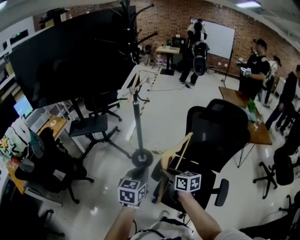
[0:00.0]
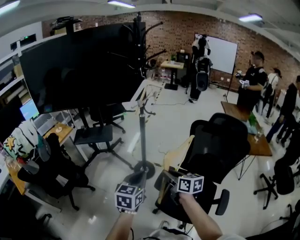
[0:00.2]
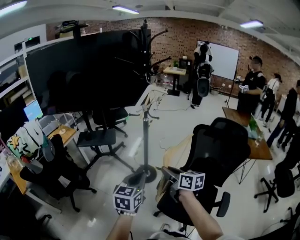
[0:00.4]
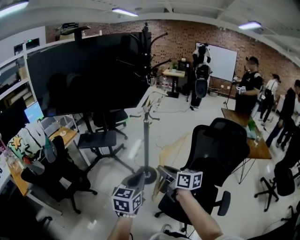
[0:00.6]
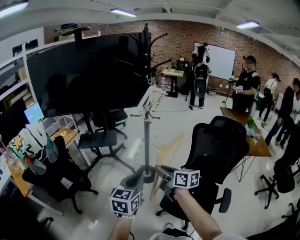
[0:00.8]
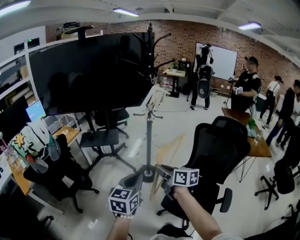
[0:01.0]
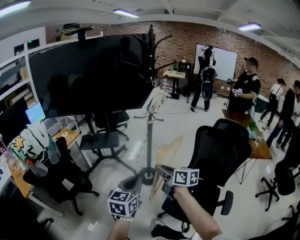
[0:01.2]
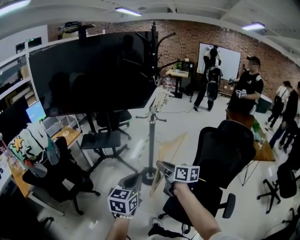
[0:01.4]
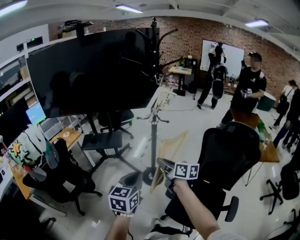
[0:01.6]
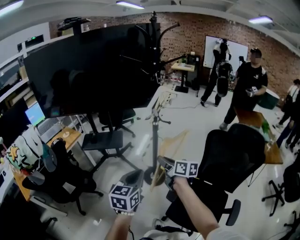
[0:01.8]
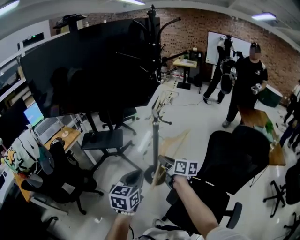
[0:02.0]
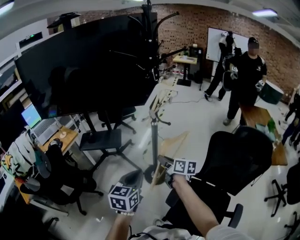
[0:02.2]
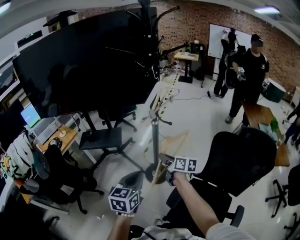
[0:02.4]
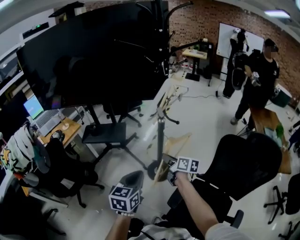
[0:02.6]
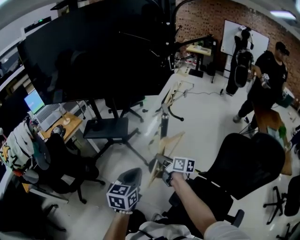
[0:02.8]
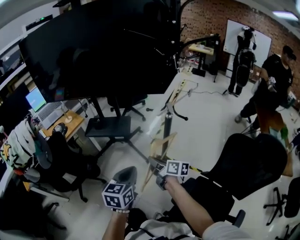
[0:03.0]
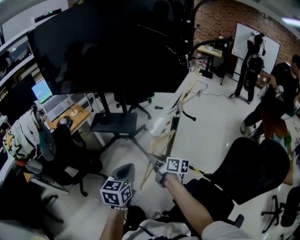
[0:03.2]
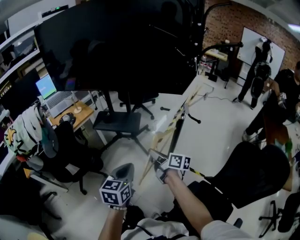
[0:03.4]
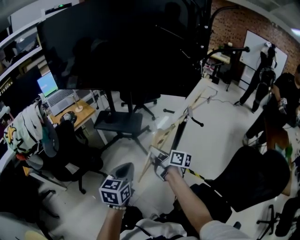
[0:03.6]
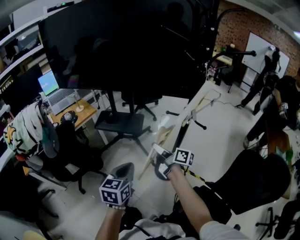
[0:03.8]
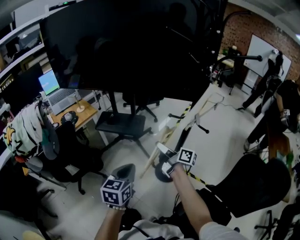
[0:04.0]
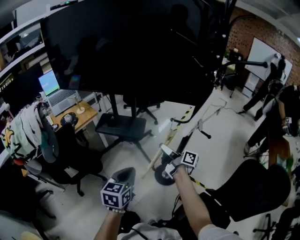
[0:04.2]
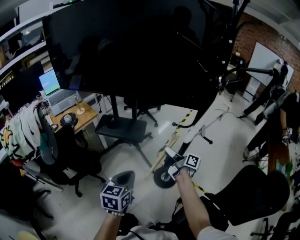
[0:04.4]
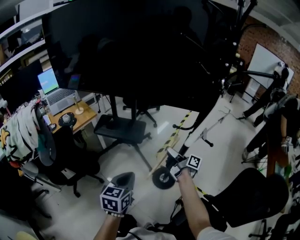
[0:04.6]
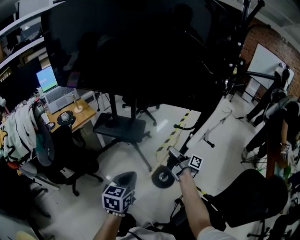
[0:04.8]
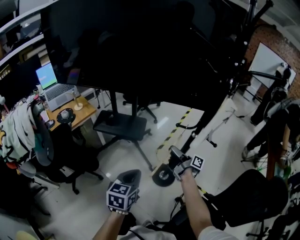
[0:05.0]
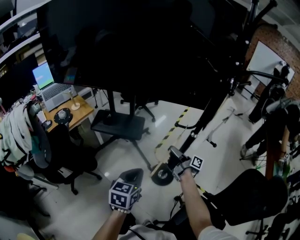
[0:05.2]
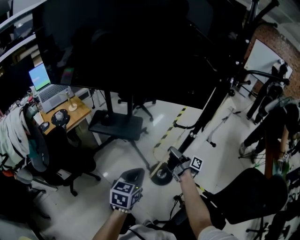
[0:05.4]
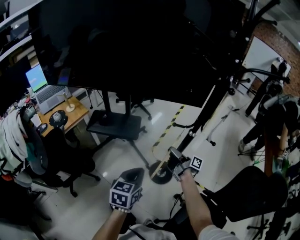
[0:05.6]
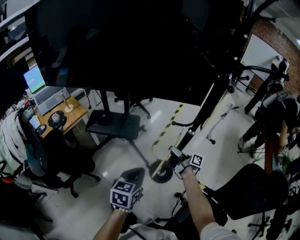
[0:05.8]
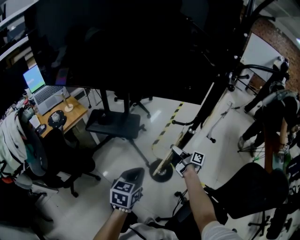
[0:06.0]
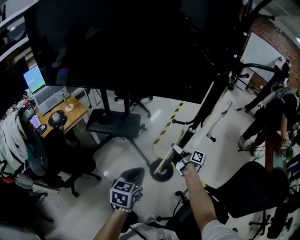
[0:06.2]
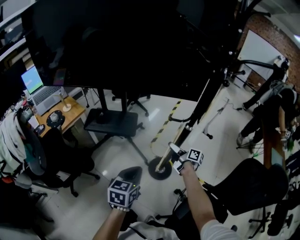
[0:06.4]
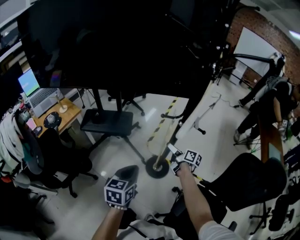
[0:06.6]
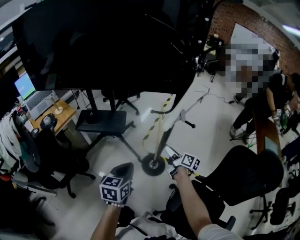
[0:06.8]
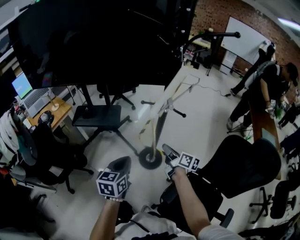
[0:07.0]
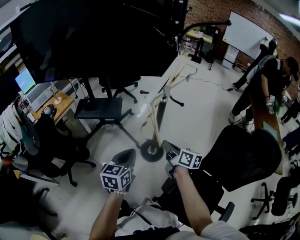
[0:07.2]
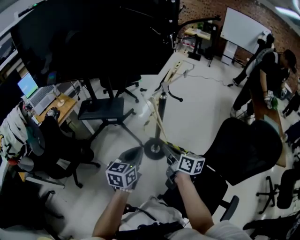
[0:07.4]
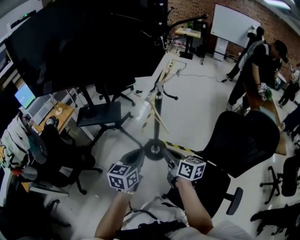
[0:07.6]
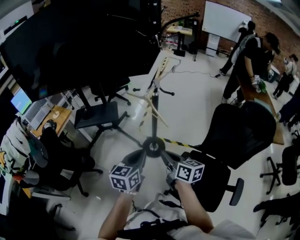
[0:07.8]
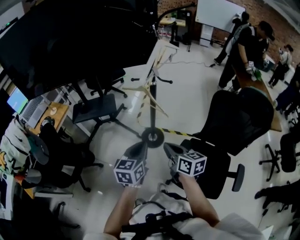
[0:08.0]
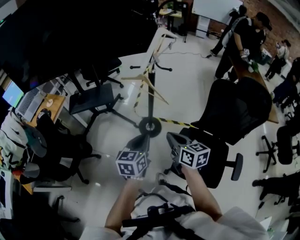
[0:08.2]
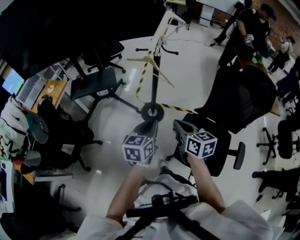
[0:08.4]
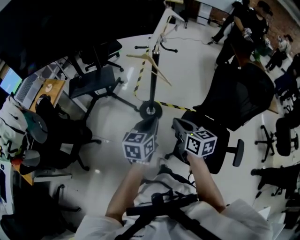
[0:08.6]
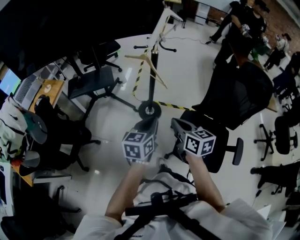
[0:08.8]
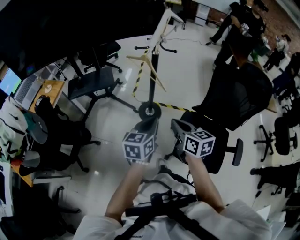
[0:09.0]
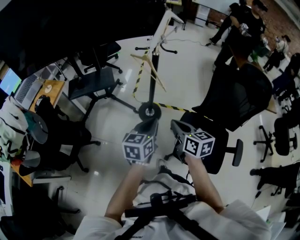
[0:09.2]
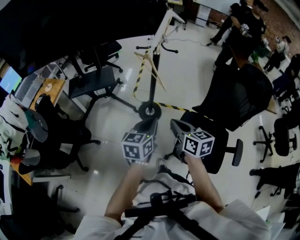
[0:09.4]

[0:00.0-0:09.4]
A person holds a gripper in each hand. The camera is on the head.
0:00.0 to 0:01.6: The right gripper is displaced forward, upward and to the left by about 20 cm; the left gripper moves to the left and upward, about 15 cm.
0:01.6 to 0:03.2: The left gripper goes roughly 20 cm forward and downward, while the right gripper goes about 25 cm forward, downward and to the left, and changes its angle by about 20 degrees.
0:03.2 to 0:04.8: The right gripper moves forward and to the right, approximately 20 cm, and changes its angle by roughly 30 degrees, while the left gripper travels forward by some 10 cm.
0:04.8 to 0:06.2: The right gripper heads downward, covering some 5 cm. The left gripper ends up some 5 cm from where it was.
0:06.2 to 0:07.8: The left gripper goes about 20 cm backward and to the right, while the right gripper travels backward by approximately 35 cm, turns by about 30 degrees, and closes its fingers.
0:07.8 to 0:09.4: Both grippers travel together backward, roughly 5 cm.

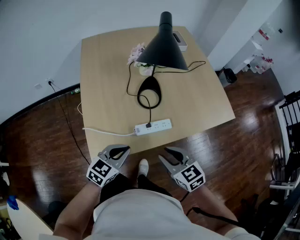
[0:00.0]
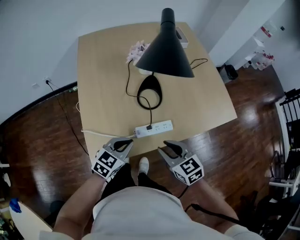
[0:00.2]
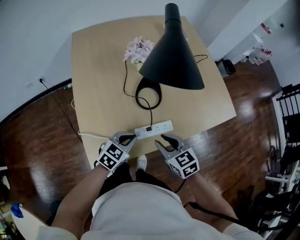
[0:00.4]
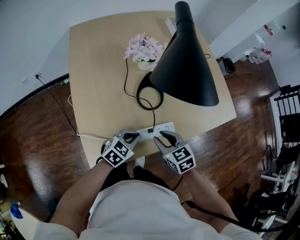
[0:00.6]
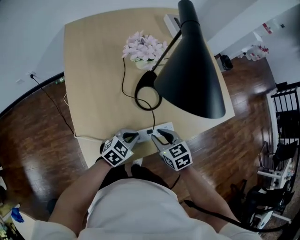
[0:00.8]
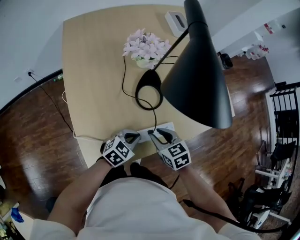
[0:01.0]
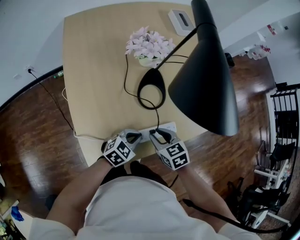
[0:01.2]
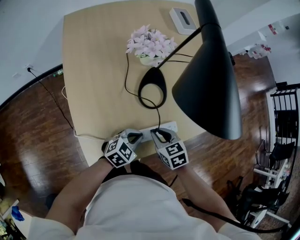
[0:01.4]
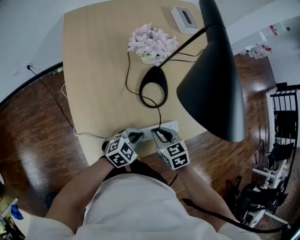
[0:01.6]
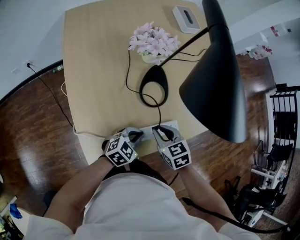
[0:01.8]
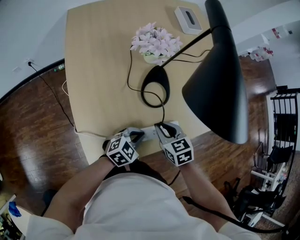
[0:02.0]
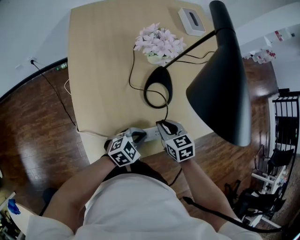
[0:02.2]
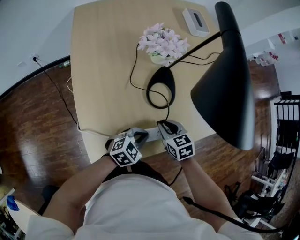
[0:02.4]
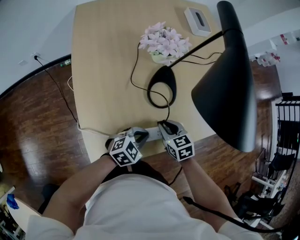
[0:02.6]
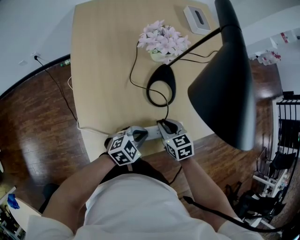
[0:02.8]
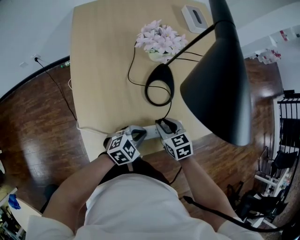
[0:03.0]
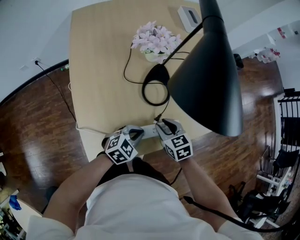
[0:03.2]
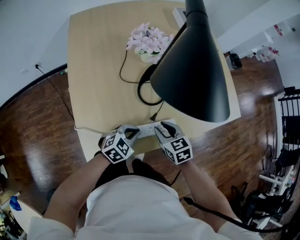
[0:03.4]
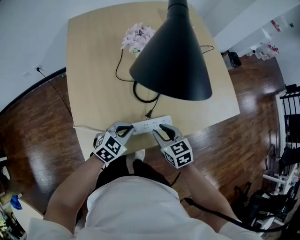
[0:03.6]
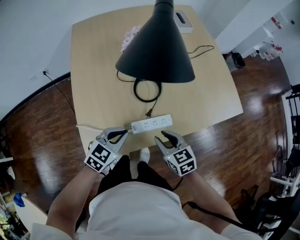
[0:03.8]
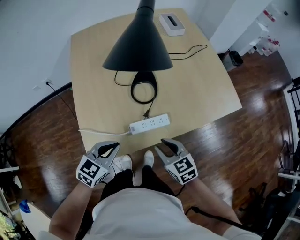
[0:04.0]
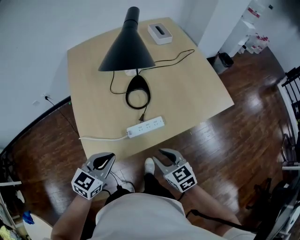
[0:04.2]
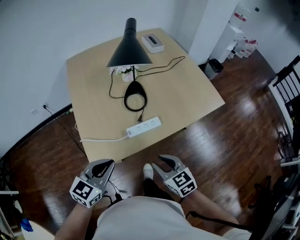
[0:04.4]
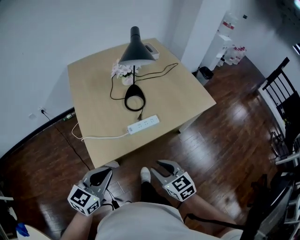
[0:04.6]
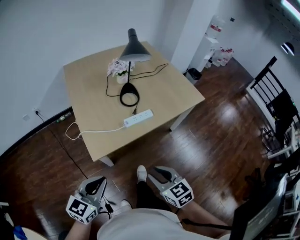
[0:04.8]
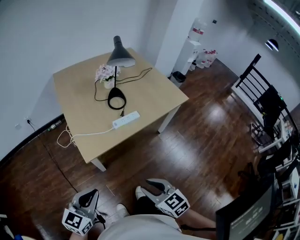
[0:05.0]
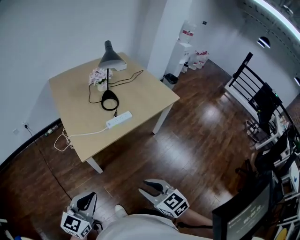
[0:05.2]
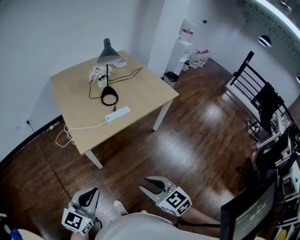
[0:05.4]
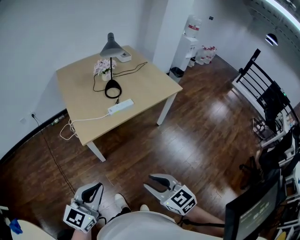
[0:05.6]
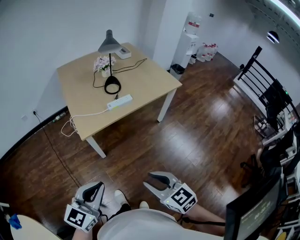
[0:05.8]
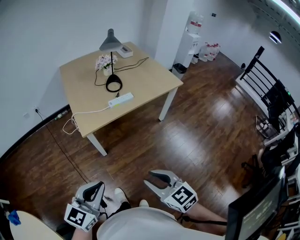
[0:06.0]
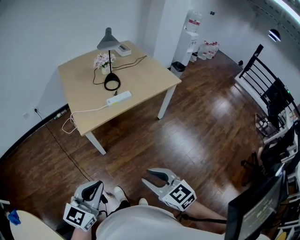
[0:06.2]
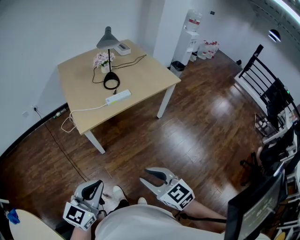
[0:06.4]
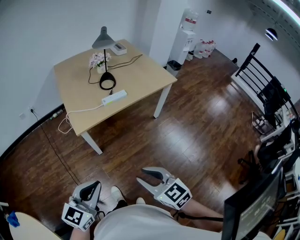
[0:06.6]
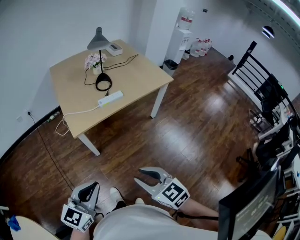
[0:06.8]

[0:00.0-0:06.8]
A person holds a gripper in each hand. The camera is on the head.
0:00.0 to 0:01.4: The left gripper heads downward and forward, covering roughly 15 cm, and rotates some 20 degrees, while the right gripper heads forward, downward and to the left, covering roughly 20 cm, and changes its angle by approximately 20 degrees.
0:01.4 to 0:02.8: The grippers move only a little.
0:02.8 to 0:04.0: The right gripper heads backward, upward and to the right, covering roughly 15 cm. Meanwhile the left gripper is displaced upward, backward and to the left by about 15 cm.
0:04.0 to 0:05.4: The grippers both shift backward by approximately 40 cm. The left gripper turns by about 20 degrees.
0:05.4 to 0:06.8: The left gripper is displaced backward and to the right by approximately 10 cm; the right gripper moves backward, approximately 5 cm.

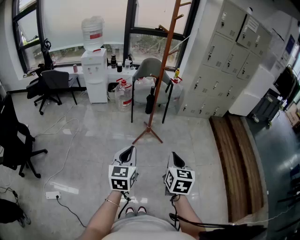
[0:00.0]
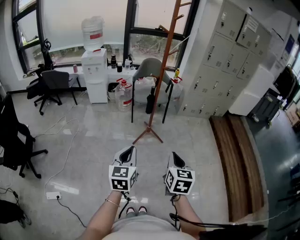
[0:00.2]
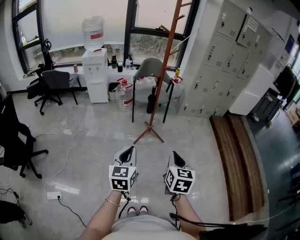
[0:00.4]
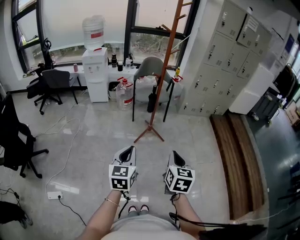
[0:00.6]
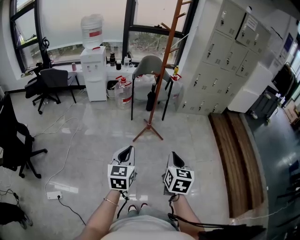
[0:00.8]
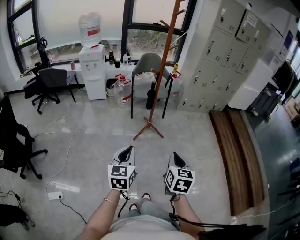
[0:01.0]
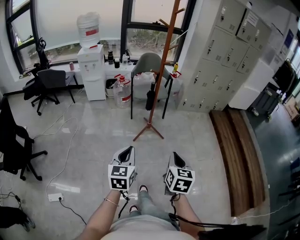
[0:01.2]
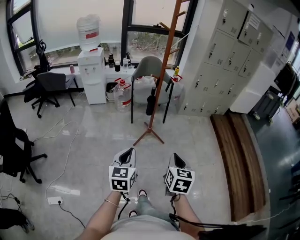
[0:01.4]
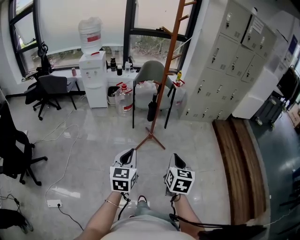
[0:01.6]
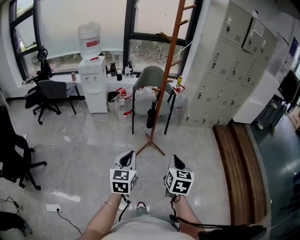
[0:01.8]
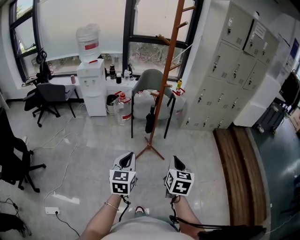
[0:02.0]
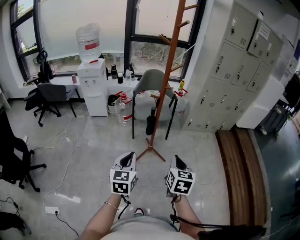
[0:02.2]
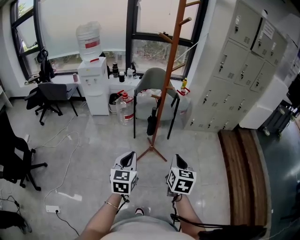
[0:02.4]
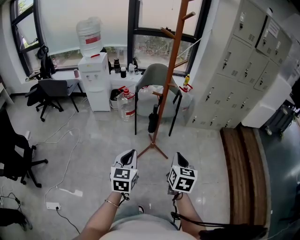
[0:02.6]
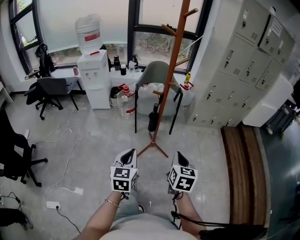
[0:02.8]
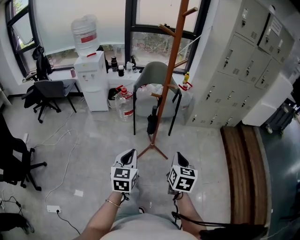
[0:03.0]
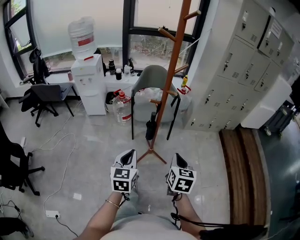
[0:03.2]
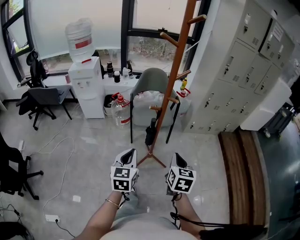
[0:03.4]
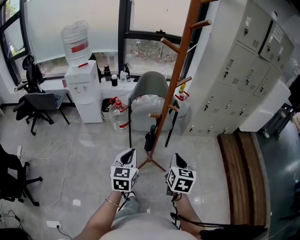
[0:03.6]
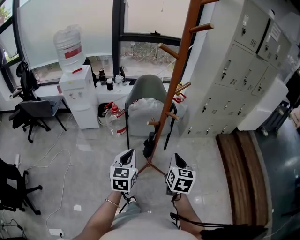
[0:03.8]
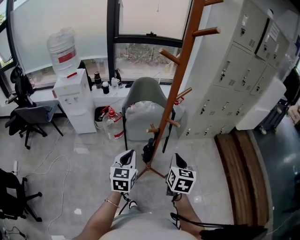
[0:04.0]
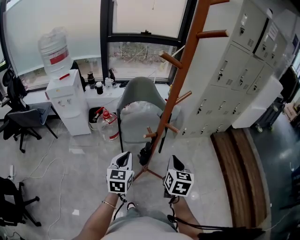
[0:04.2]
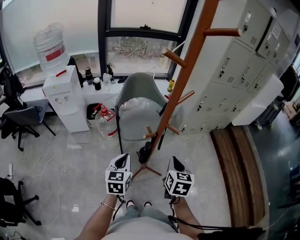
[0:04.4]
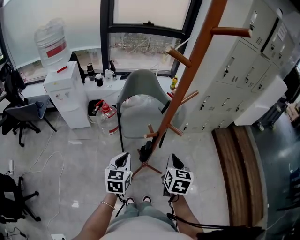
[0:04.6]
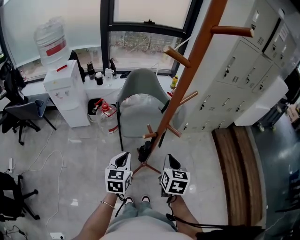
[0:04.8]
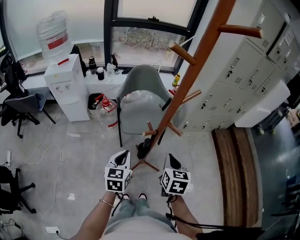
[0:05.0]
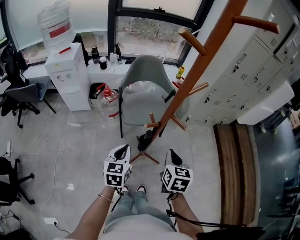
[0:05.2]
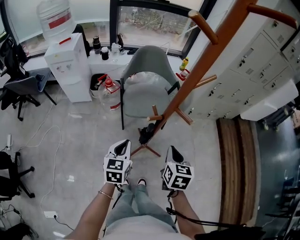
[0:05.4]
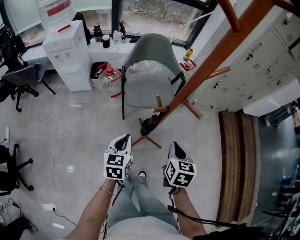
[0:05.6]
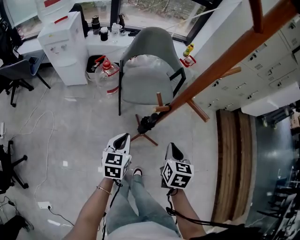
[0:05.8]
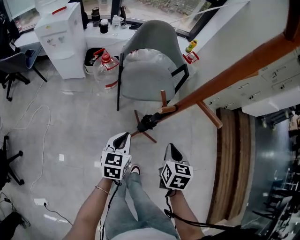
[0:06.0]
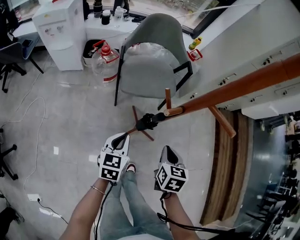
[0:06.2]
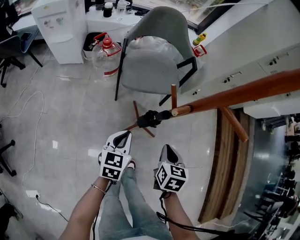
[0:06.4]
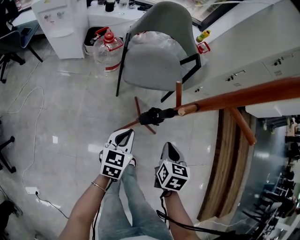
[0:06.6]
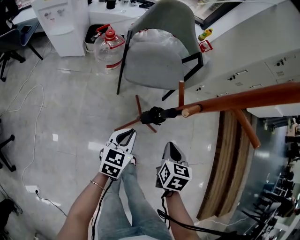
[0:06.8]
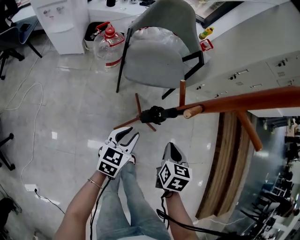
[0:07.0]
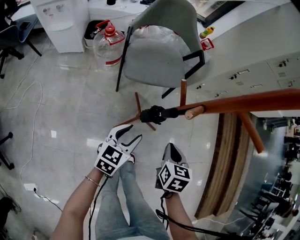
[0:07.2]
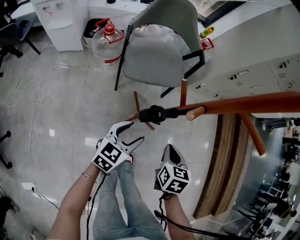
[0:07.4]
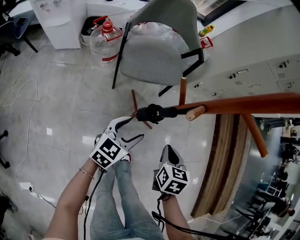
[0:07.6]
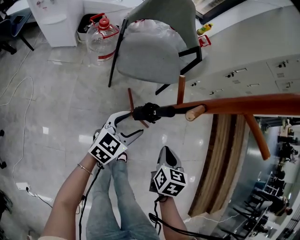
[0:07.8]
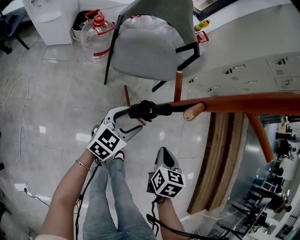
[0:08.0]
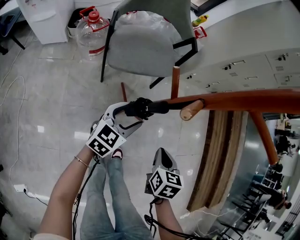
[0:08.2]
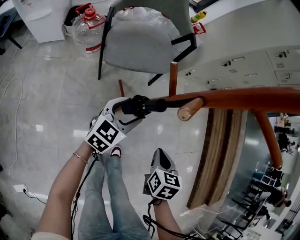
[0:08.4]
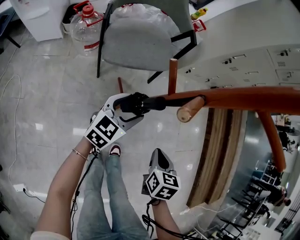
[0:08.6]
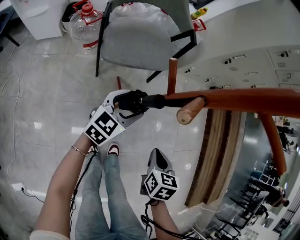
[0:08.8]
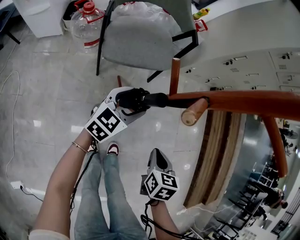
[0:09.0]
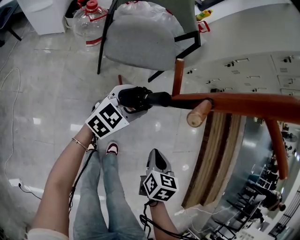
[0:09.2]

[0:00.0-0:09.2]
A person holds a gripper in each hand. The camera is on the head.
0:00.0 to 0:01.6: Both grippers move forward, about 10 cm.
0:01.6 to 0:03.0: The grippers both shift forward by approximately 20 cm.
0:03.0 to 0:04.6: Both grippers travel together forward, roughly 25 cm.
0:04.6 to 0:06.2: The grippers both shift downward by roughly 20 cm.
0:06.2 to 0:07.6: The left gripper moves approximately 5 cm, changes its angle by about 30 degrees, and opens its fingers; the right gripper travels downward by some 5 cm.
0:07.6 to 0:09.2: The left gripper heads forward, covering approximately 10 cm. Meanwhile the right gripper goes about 5 cm downward.
